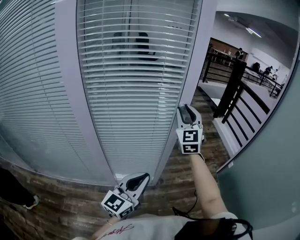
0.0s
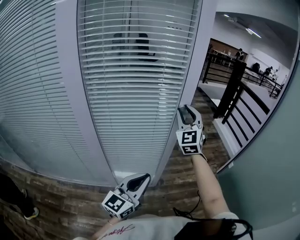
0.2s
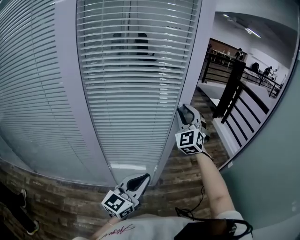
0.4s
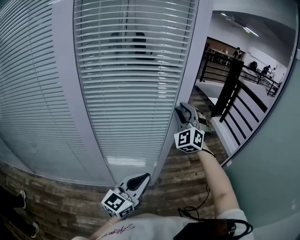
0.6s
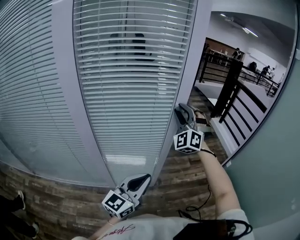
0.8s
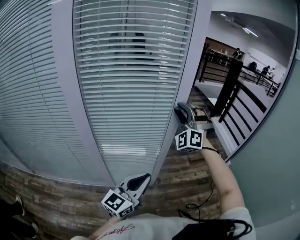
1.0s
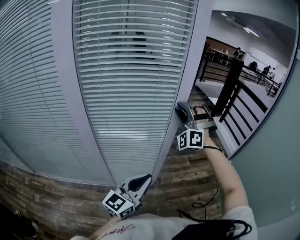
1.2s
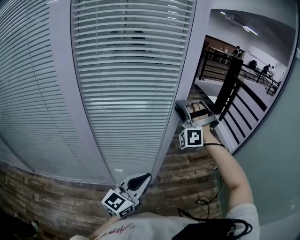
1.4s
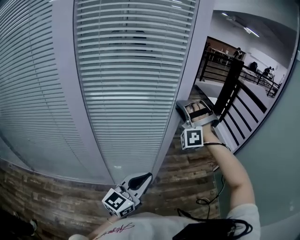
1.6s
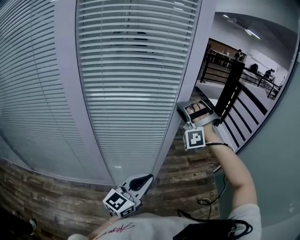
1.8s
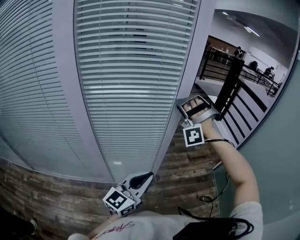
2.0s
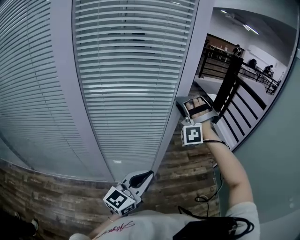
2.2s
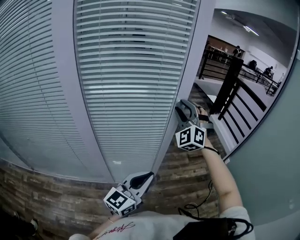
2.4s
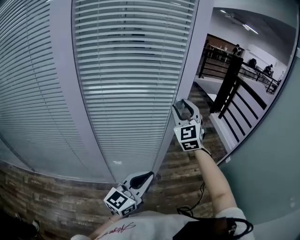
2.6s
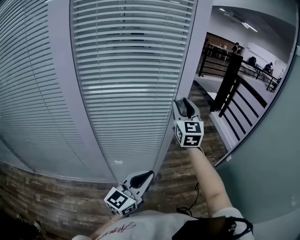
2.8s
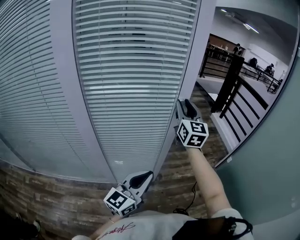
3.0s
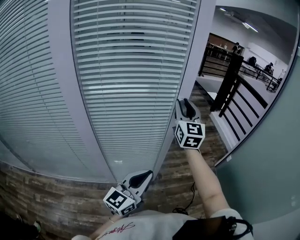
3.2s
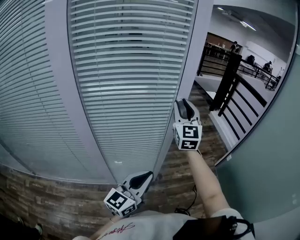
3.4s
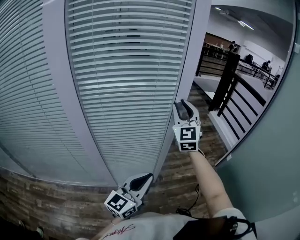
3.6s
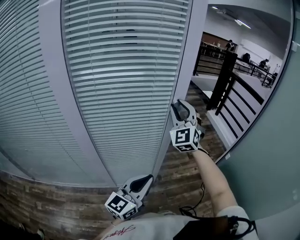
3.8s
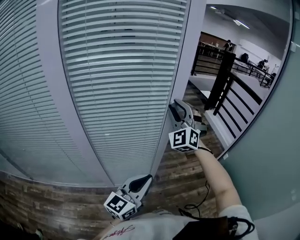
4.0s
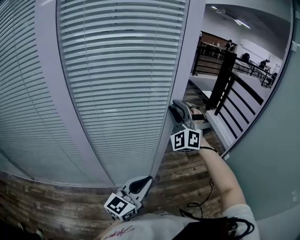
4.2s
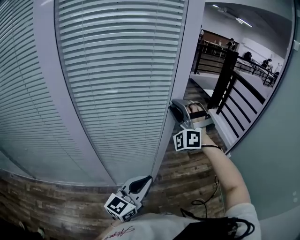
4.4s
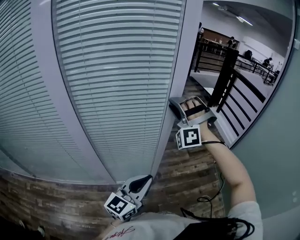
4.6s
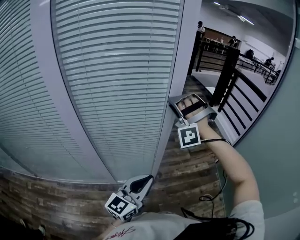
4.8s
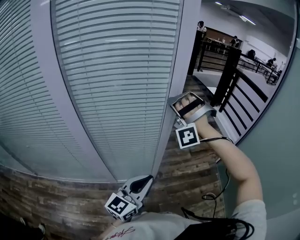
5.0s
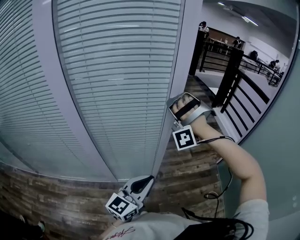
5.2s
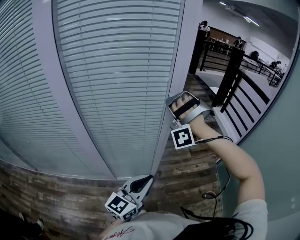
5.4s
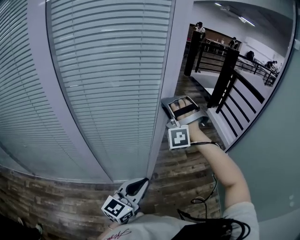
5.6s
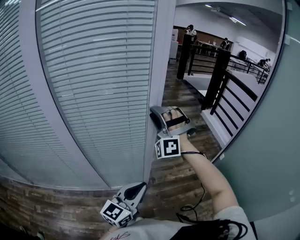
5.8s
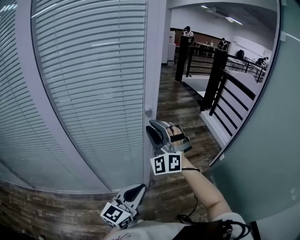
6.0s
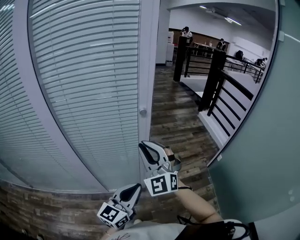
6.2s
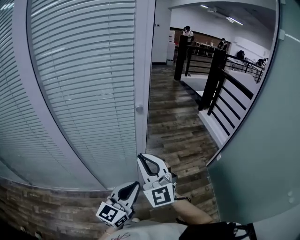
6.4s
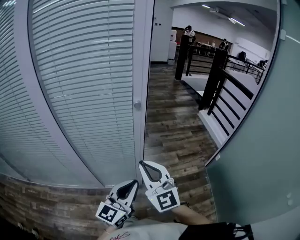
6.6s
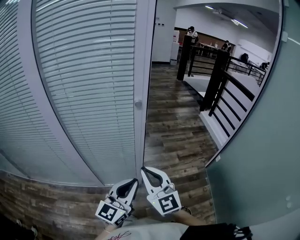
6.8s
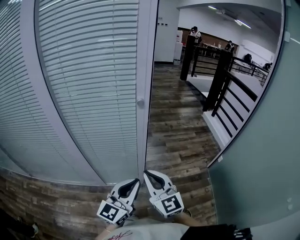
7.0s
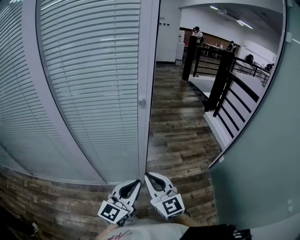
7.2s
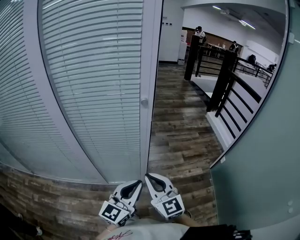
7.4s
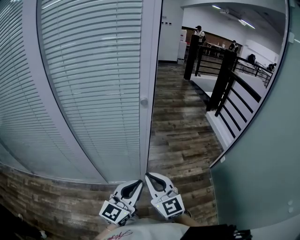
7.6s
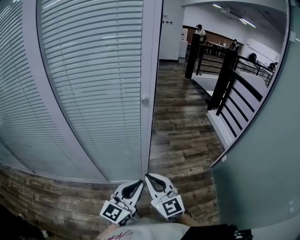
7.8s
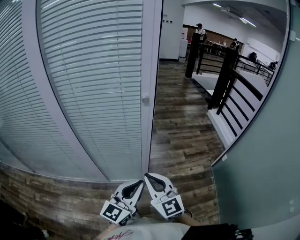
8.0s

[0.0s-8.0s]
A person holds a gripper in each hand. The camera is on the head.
0.0s to 1.6s: The right gripper twists roughly 80 degrees counterclockwise, seen from behind.
1.6s to 3.2s: The right gripper twists about 100 degrees clockwise, seen from behind.
3.2s to 4.8s: The right gripper rotates around the line of its fingers by roughly 100 degrees, counterclockwise from behind.
4.8s to 6.4s: The right gripper goes approximately 15 cm backward, rotates around the line of its fingers by some 80 degrees, clockwise from behind, and closes its fingers. The left gripper is displaced to the right by some 5 cm.
6.4s to 8.0s: The right gripper heads backward and downward, covering some 10 cm, and swivels about 20 degrees.

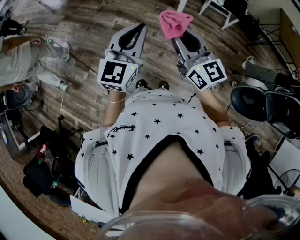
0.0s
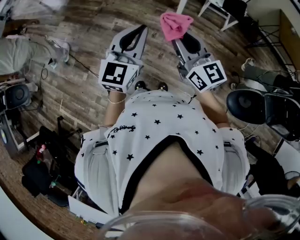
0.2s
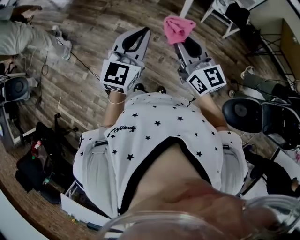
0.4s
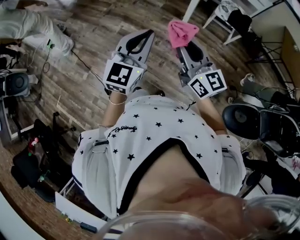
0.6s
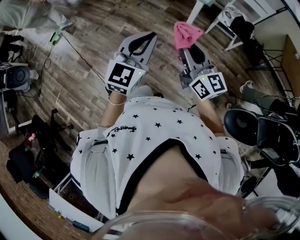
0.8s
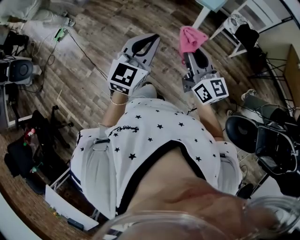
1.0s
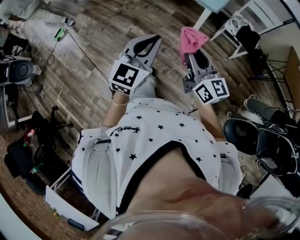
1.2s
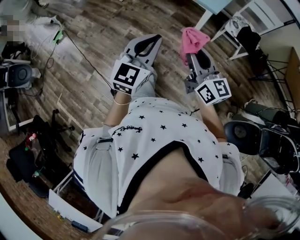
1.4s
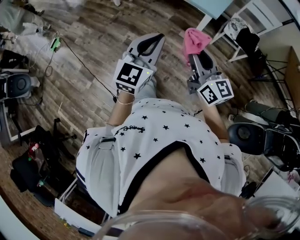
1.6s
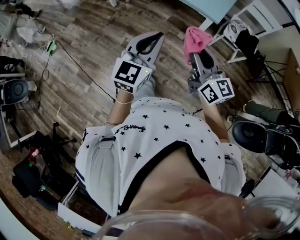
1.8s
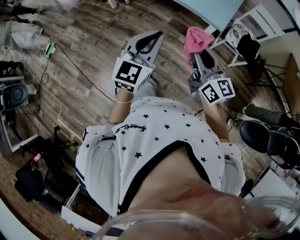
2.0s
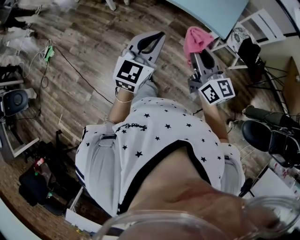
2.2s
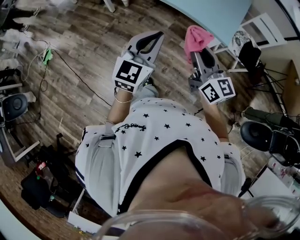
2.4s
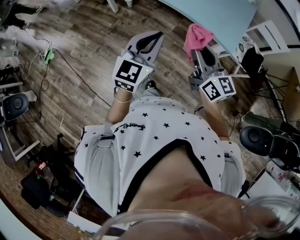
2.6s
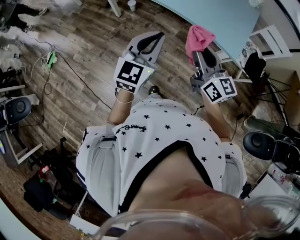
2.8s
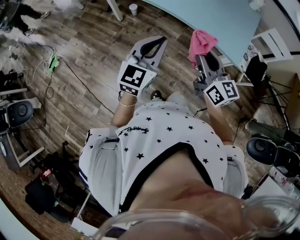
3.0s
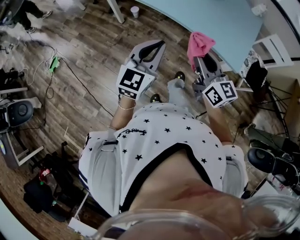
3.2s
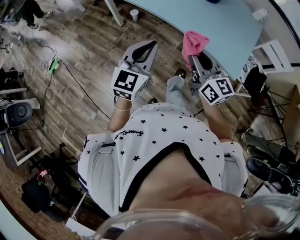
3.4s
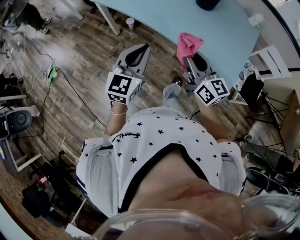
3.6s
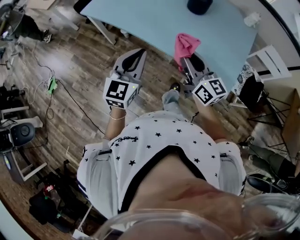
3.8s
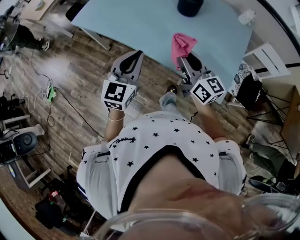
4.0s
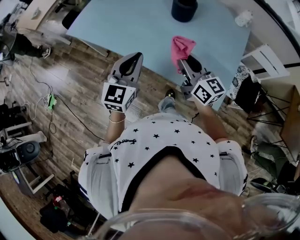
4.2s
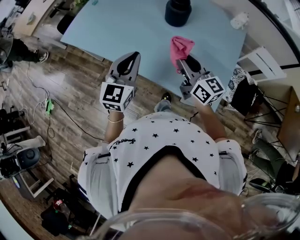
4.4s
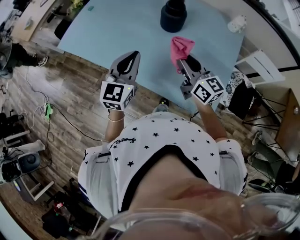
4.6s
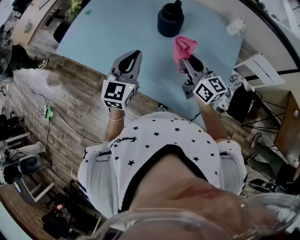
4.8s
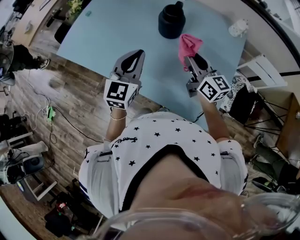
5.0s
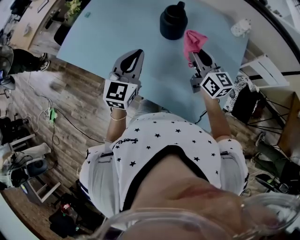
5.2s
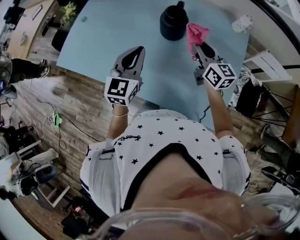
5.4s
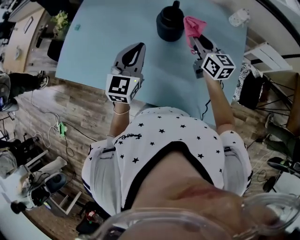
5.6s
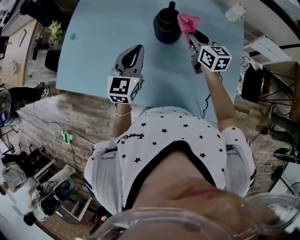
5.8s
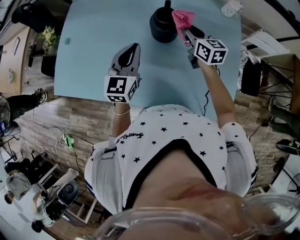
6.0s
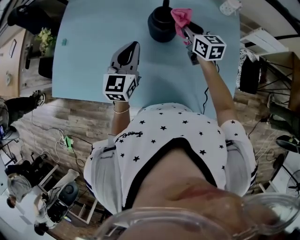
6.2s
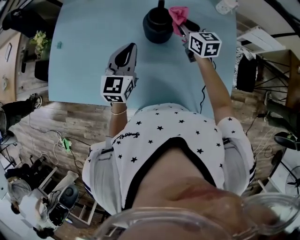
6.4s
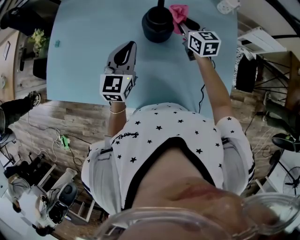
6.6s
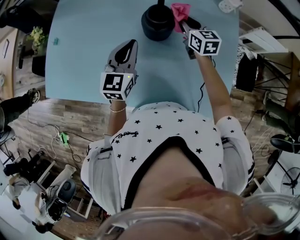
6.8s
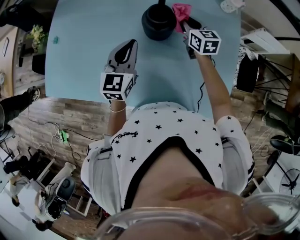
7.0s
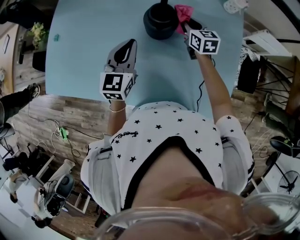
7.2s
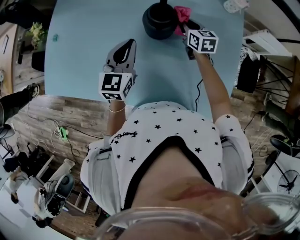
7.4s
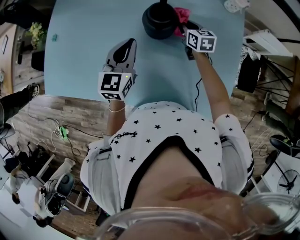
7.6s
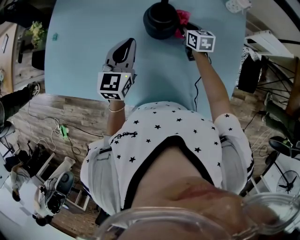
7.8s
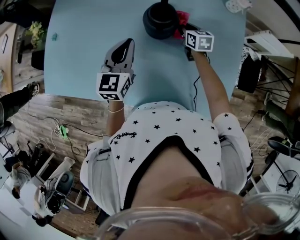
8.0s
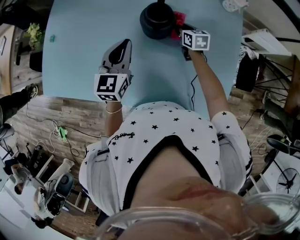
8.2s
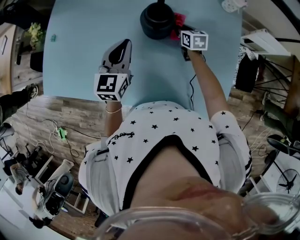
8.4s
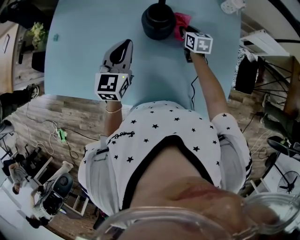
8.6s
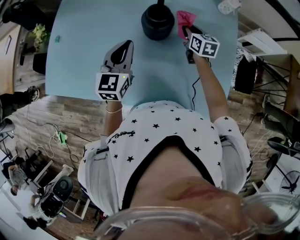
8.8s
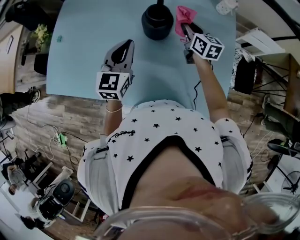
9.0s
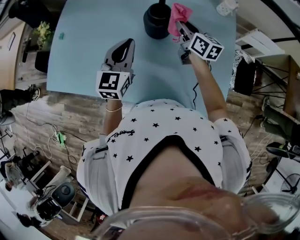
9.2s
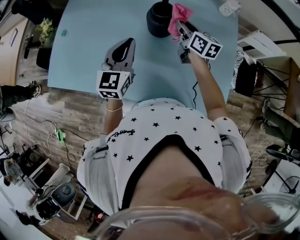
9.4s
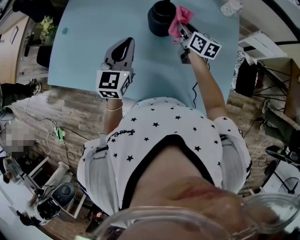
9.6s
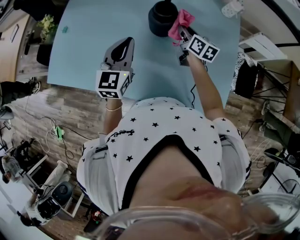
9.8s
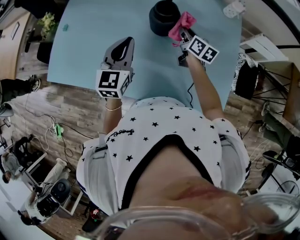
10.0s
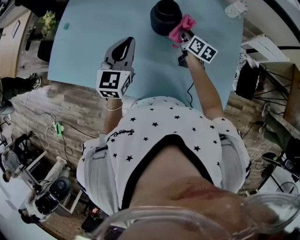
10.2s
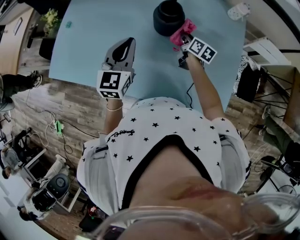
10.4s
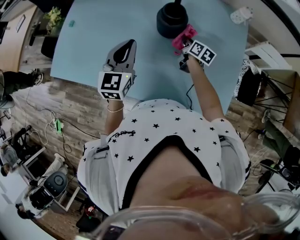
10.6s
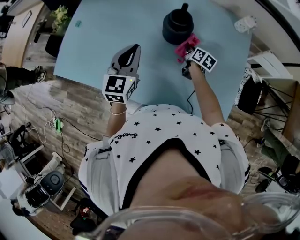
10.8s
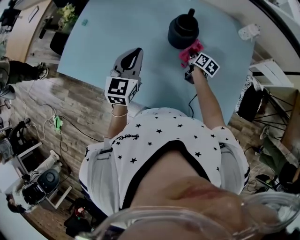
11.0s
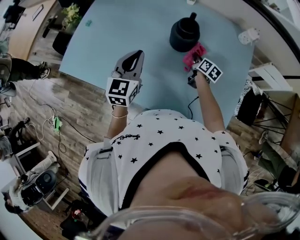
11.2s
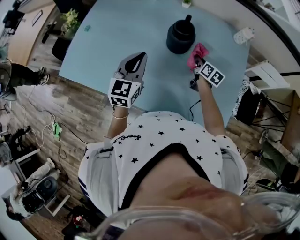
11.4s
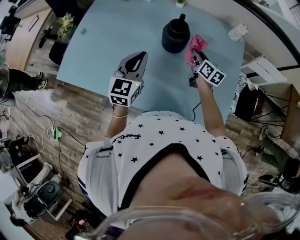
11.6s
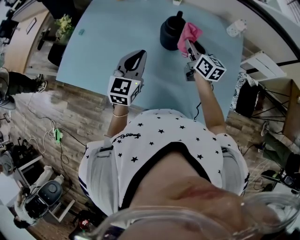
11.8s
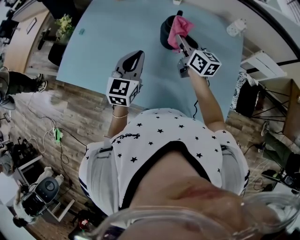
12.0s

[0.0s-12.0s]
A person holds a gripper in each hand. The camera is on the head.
0.0s to 1.6s: Both grippers move forward, about 10 cm.
1.6s to 3.0s: The right gripper goes roughly 30 cm forward; the left gripper shifts about 35 cm forward and to the left.
3.0s to 4.4s: The right gripper moves forward and to the right, about 35 cm; the left gripper goes some 30 cm forward.
4.4s to 6.0s: Both grippers travel together forward, some 25 cm. The right gripper changes its angle by roughly 30 degrees.
6.0s to 7.6s: The right gripper shifts about 15 cm downward and forward. The left gripper ends up roughly 5 cm from where it was.
7.6s to 9.0s: The right gripper travels upward by roughly 10 cm, while the left gripper ends up about 5 cm from where it was.
9.0s to 10.4s: The right gripper goes some 10 cm downward, and rotates some 20 degrees.
10.4s to 12.0s: The right gripper goes some 20 cm upward and to the left, and swivels some 30 degrees.

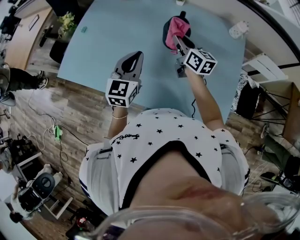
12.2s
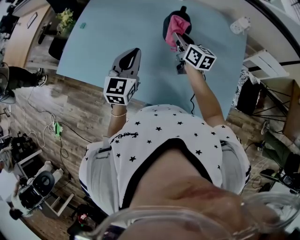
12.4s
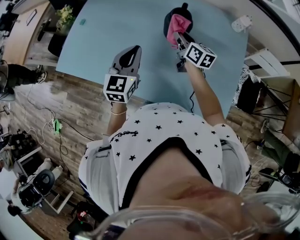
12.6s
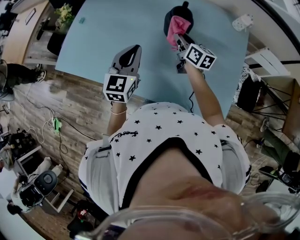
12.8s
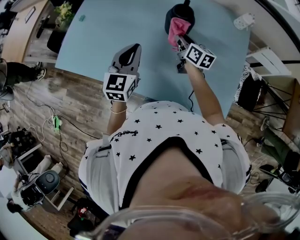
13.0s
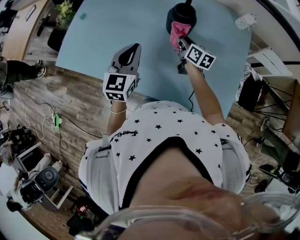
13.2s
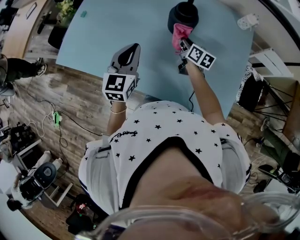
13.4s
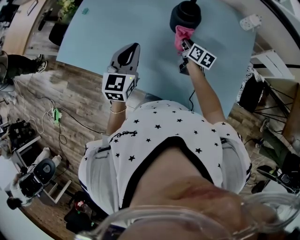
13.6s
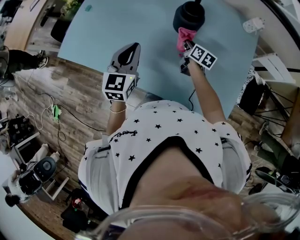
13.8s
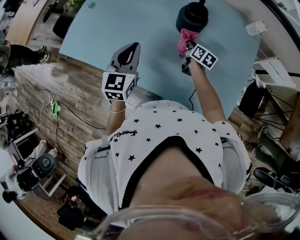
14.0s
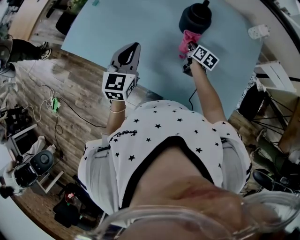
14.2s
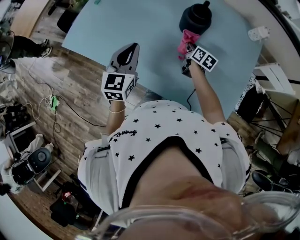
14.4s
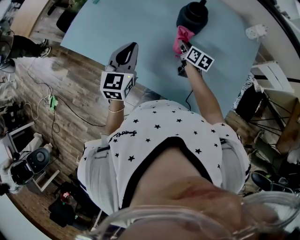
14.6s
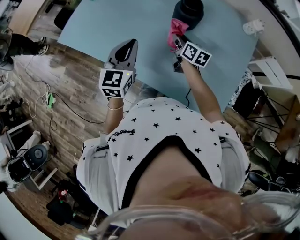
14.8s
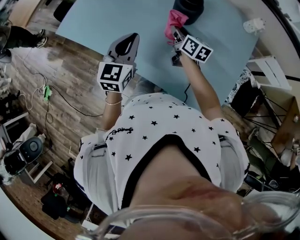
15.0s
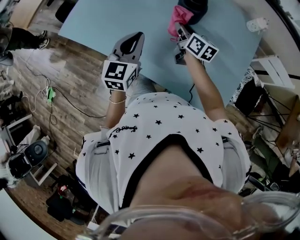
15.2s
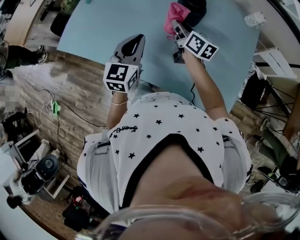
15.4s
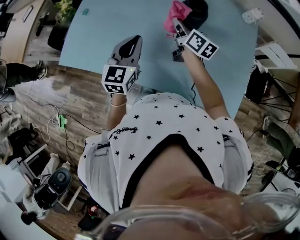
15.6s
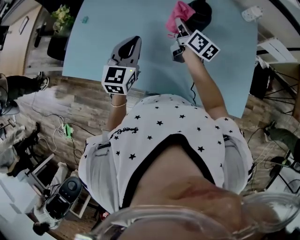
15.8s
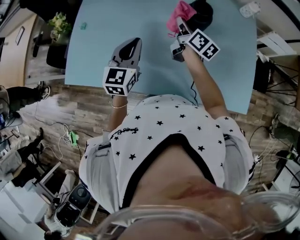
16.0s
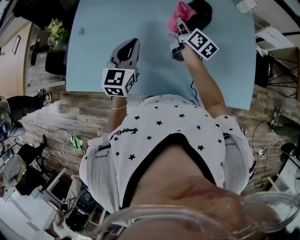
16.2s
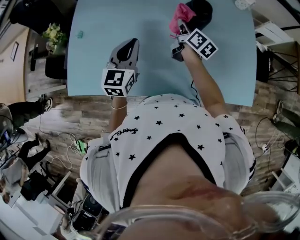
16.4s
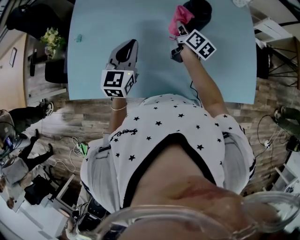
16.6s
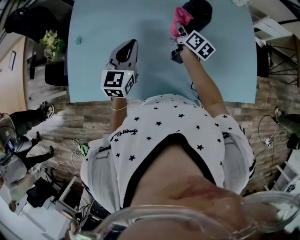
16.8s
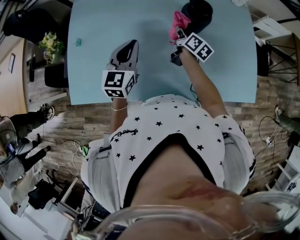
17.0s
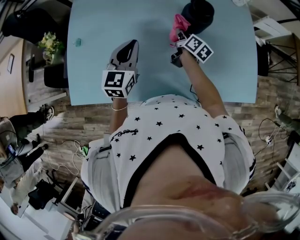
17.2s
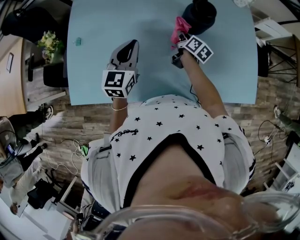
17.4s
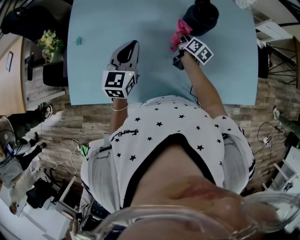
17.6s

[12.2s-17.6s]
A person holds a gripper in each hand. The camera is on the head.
12.2s to 13.6s: The right gripper moves downward, roughly 15 cm, and turns by roughly 20 degrees.
13.6s to 15.0s: The right gripper heads upward and to the left, covering roughly 10 cm. The left gripper shifts by some 5 cm.
15.0s to 16.2s: The left gripper shifts by some 15 cm, and swivels approximately 20 degrees. The right gripper changes place by about 10 cm, and swivels about 40 degrees.
16.2s to 17.6s: The left gripper shifts by some 5 cm, while the right gripper is displaced downward by approximately 15 cm, and changes its angle by roughly 20 degrees.
